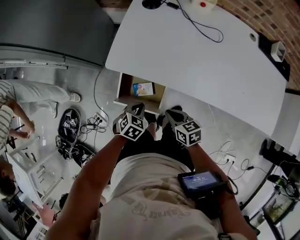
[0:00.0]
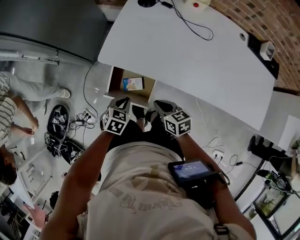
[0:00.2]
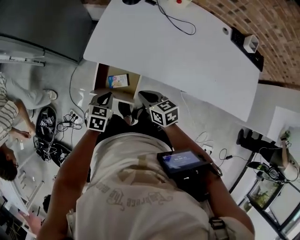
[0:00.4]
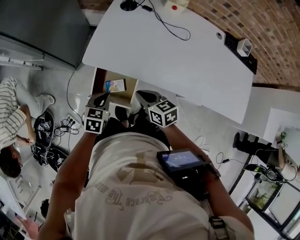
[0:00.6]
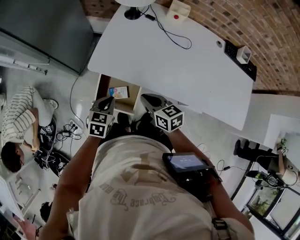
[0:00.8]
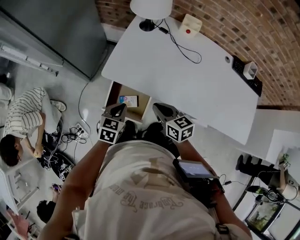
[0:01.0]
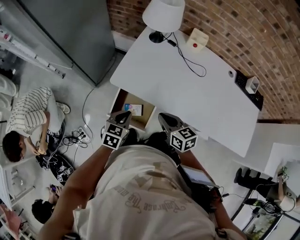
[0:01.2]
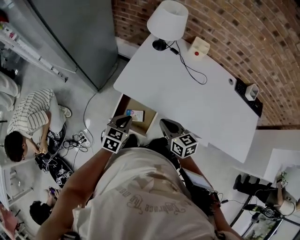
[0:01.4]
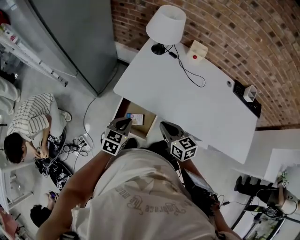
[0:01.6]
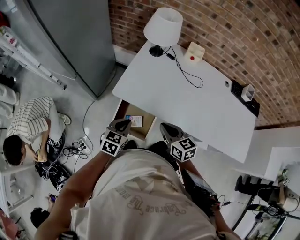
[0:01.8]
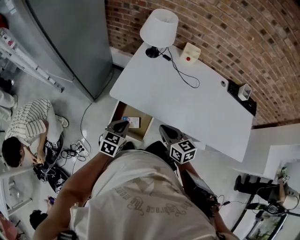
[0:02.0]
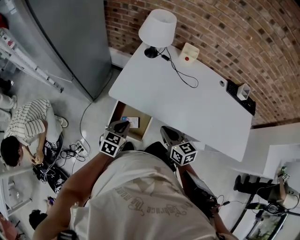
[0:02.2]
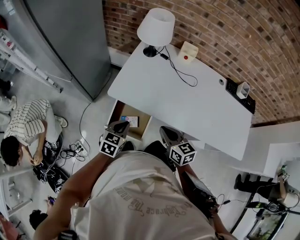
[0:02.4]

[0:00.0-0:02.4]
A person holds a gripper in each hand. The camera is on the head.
0:00.0 to 0:01.2: The right gripper is displaced upward and forward by roughly 15 cm, while the left gripper shifts approximately 15 cm upward, and changes its angle by some 30 degrees.
0:01.2 to 0:02.4: The grippers make only small movements.

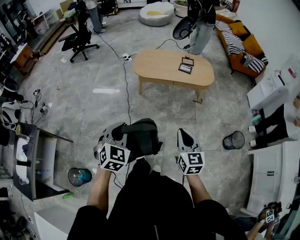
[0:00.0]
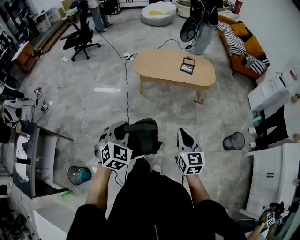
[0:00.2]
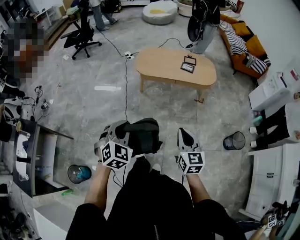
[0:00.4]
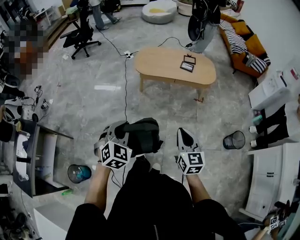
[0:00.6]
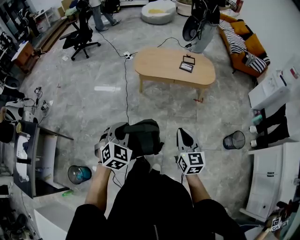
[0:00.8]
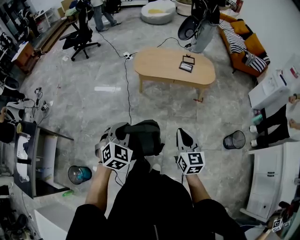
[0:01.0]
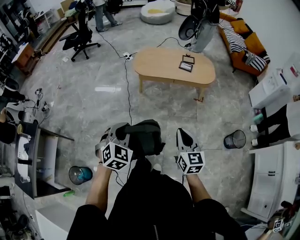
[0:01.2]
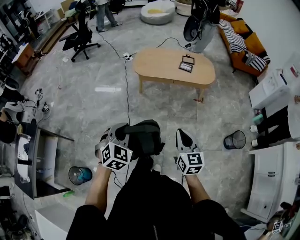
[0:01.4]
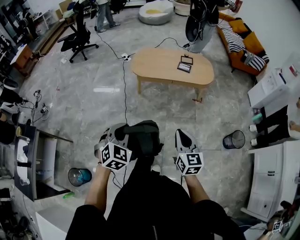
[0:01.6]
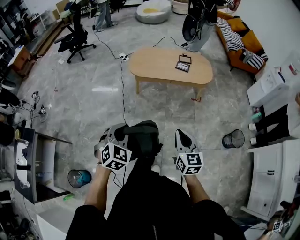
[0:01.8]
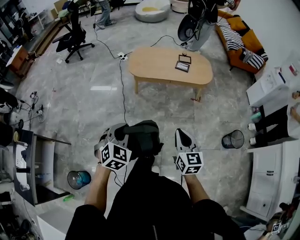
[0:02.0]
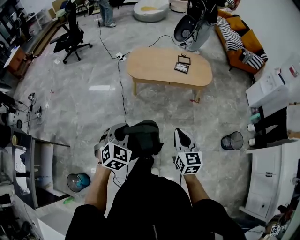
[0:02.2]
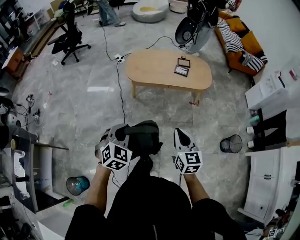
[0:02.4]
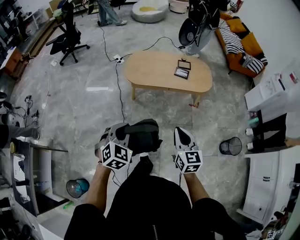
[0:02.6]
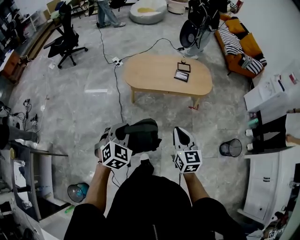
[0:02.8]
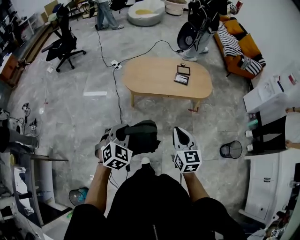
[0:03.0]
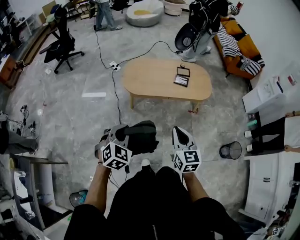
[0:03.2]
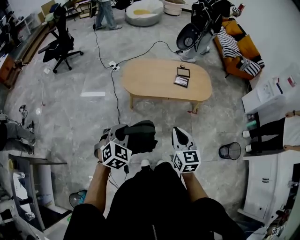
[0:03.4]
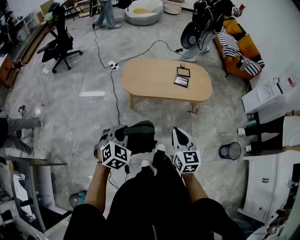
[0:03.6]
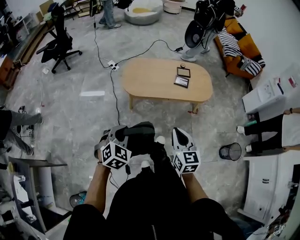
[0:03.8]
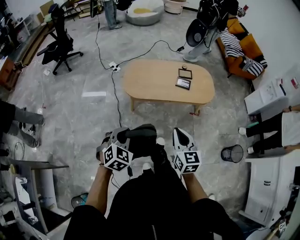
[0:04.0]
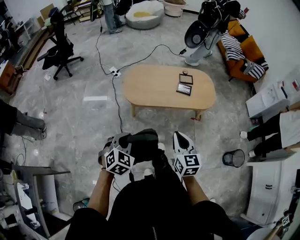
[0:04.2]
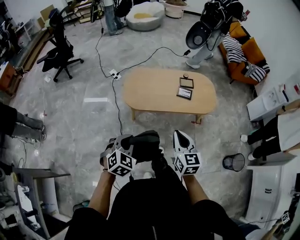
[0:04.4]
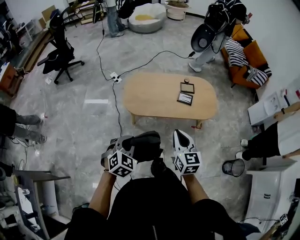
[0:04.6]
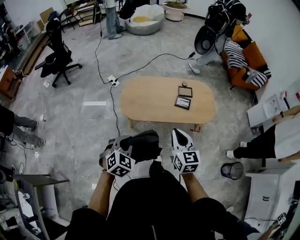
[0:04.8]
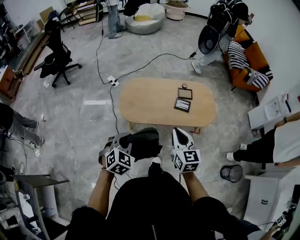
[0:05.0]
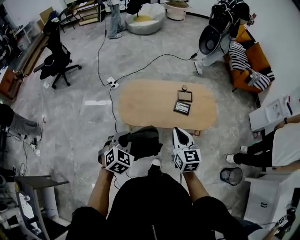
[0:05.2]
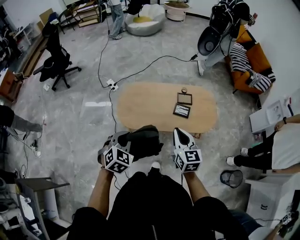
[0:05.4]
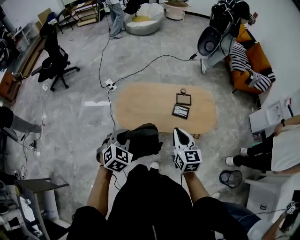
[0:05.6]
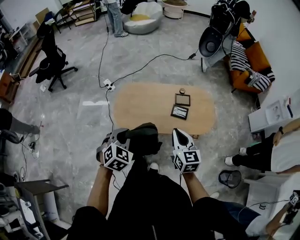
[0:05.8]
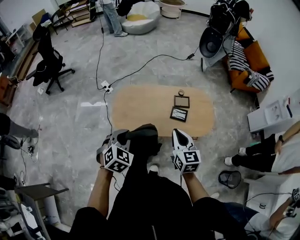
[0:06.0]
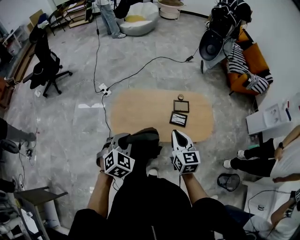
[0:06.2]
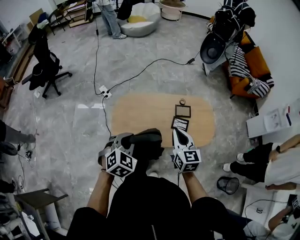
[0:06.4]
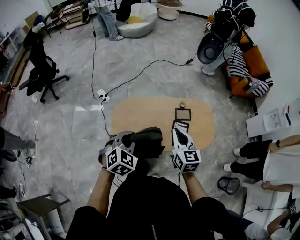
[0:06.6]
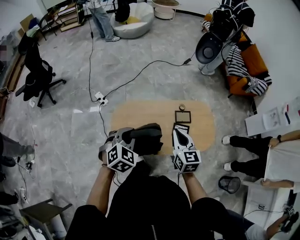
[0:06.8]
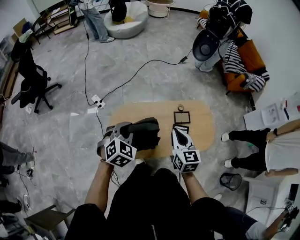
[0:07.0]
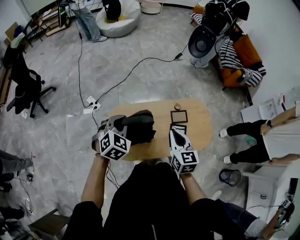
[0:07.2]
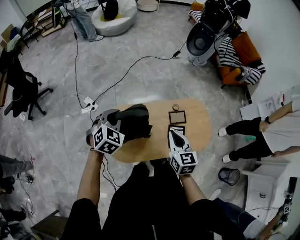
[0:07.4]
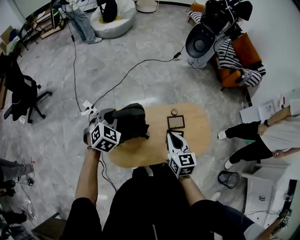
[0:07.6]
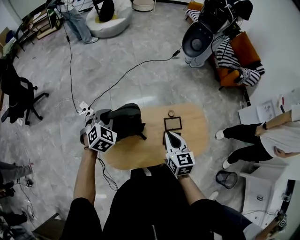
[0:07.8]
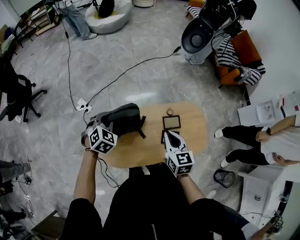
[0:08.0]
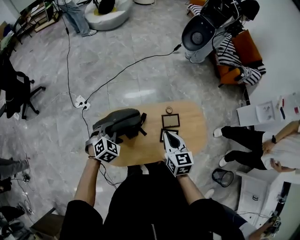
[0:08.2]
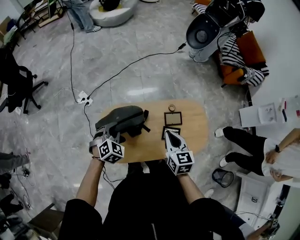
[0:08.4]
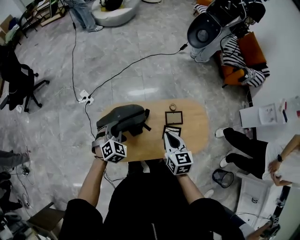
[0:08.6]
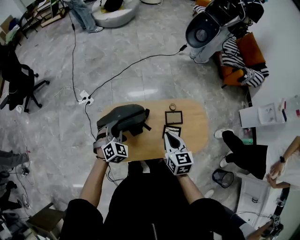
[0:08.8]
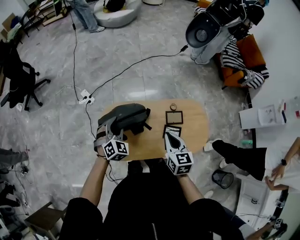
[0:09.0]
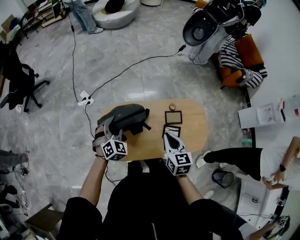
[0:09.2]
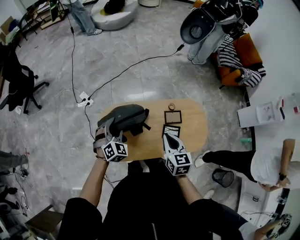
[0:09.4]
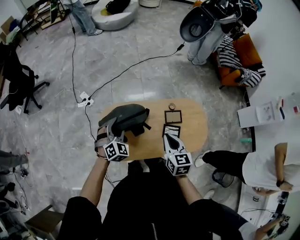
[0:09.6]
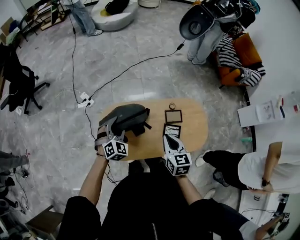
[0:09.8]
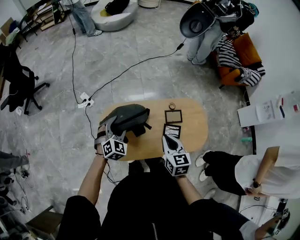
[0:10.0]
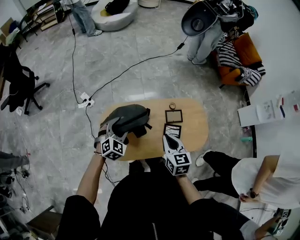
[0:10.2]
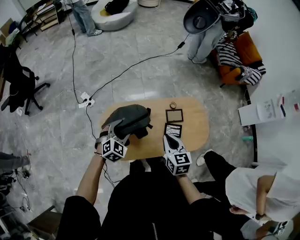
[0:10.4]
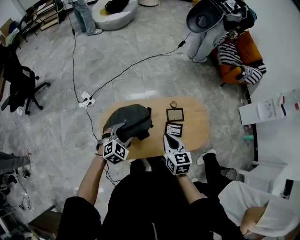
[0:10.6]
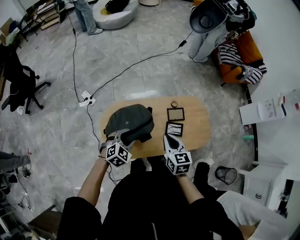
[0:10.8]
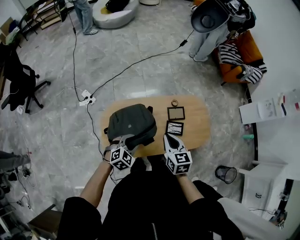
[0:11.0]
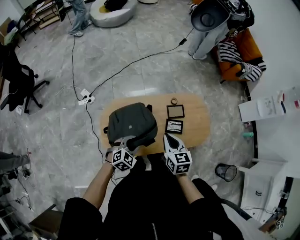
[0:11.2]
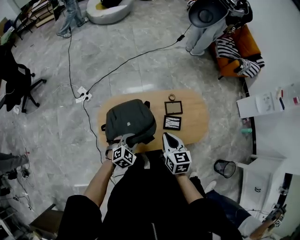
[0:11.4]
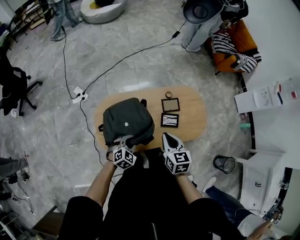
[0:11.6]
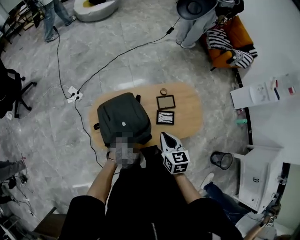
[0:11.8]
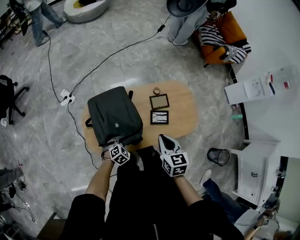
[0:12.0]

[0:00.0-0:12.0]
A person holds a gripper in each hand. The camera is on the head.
0:00.0 to 0:01.6: The grippers make only small movements.
0:01.6 to 0:03.0: The two grippers go roughly 20 cm forward.
0:03.0 to 0:04.4: The two grippers go about 15 cm forward.
0:04.4 to 0:06.0: Both grippers travel together forward, about 25 cm.
0:06.0 to 0:07.6: The right gripper moves forward, about 25 cm, while the left gripper heads forward, covering some 40 cm.
0:07.6 to 0:09.0: The left gripper goes some 10 cm downward and backward, and opens up.
0:09.0 to 0:10.4: The left gripper shifts by some 5 cm, changes its angle by approximately 20 degrees, and opens its fingers.
0:10.4 to 0:12.0: The right gripper shifts by roughly 5 cm, while the left gripper is displaced downward, backward and to the right by roughly 25 cm, swivels some 20 degrees, and closes.

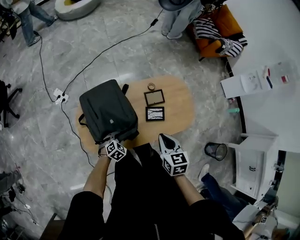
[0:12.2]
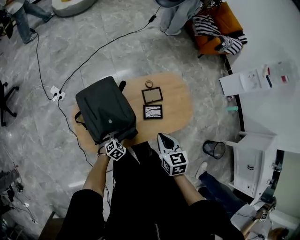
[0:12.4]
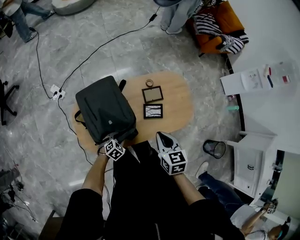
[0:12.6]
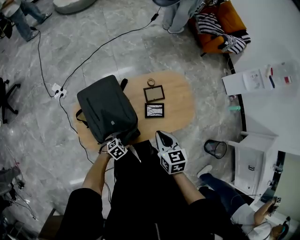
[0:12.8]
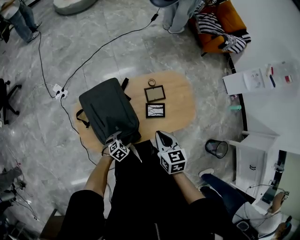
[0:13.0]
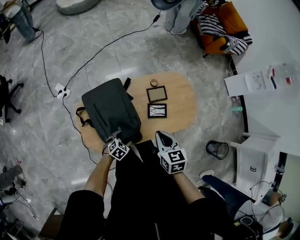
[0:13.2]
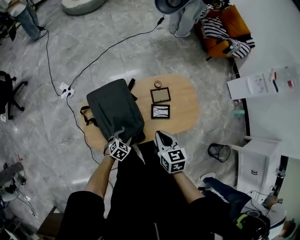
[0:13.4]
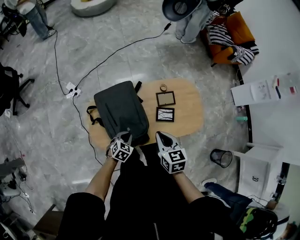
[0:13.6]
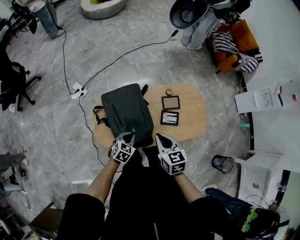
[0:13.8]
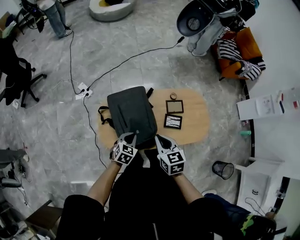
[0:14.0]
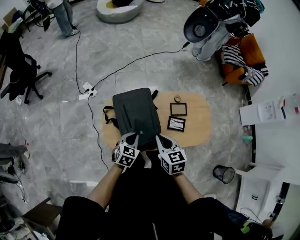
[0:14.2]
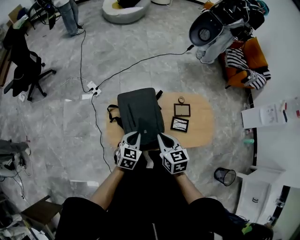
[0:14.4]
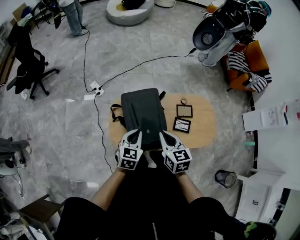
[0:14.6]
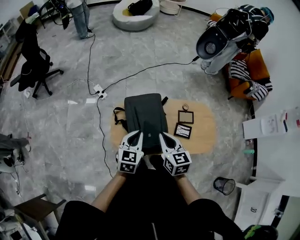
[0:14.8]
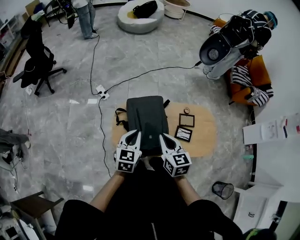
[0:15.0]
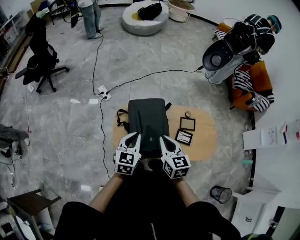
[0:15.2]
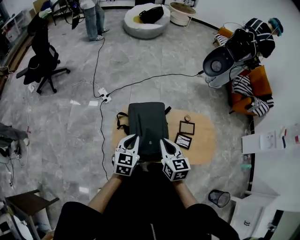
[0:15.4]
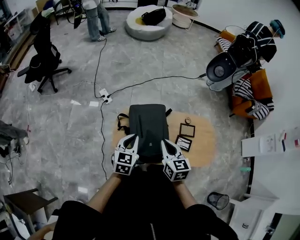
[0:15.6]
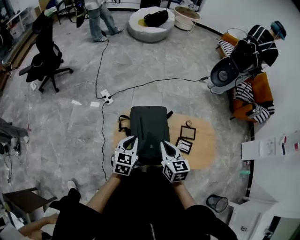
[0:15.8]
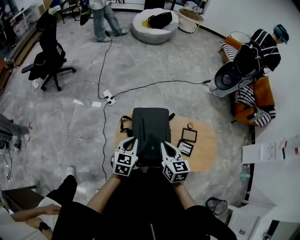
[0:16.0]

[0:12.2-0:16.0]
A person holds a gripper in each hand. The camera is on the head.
0:12.2 to 0:13.4: The left gripper opens its fingers.
0:13.4 to 0:14.8: The right gripper changes place by approximately 15 cm; the left gripper heads upward, covering some 25 cm, swivels about 50 degrees, and closes its fingers.
0:14.8 to 0:16.0: The left gripper travels to the left by approximately 5 cm.

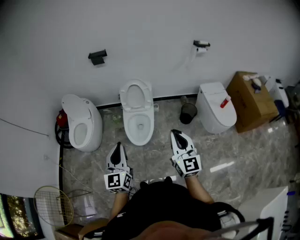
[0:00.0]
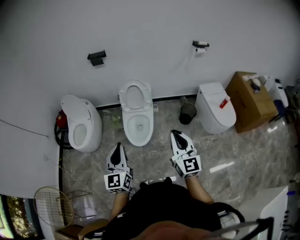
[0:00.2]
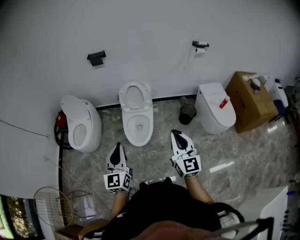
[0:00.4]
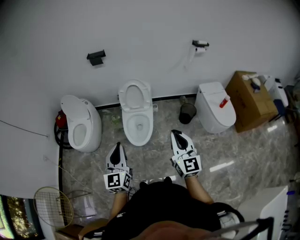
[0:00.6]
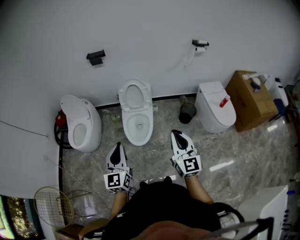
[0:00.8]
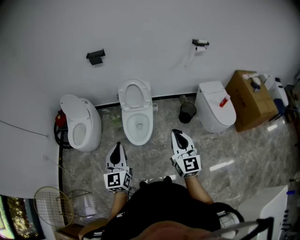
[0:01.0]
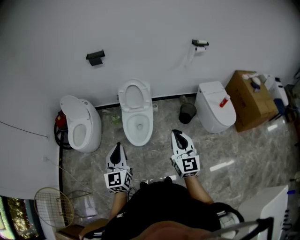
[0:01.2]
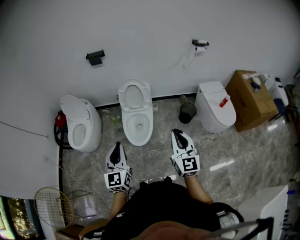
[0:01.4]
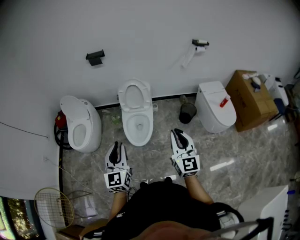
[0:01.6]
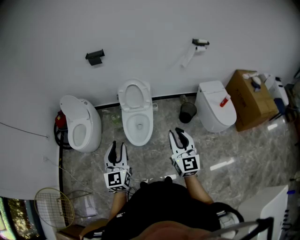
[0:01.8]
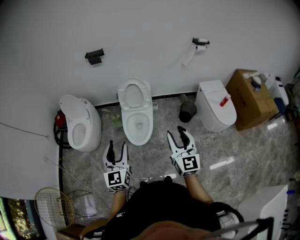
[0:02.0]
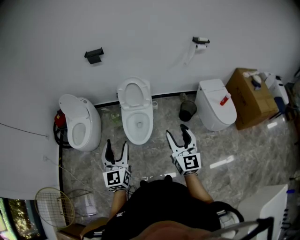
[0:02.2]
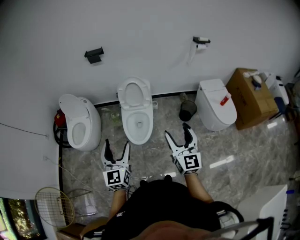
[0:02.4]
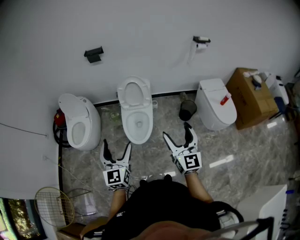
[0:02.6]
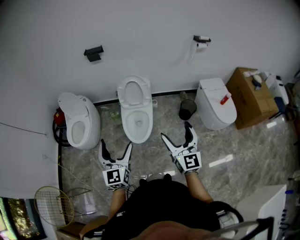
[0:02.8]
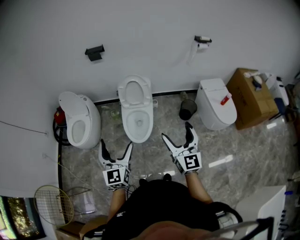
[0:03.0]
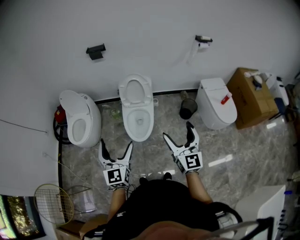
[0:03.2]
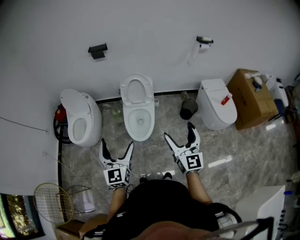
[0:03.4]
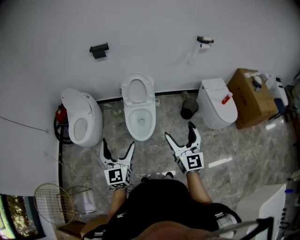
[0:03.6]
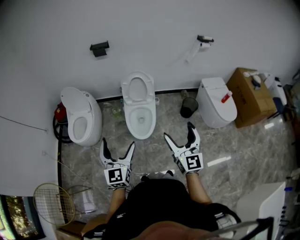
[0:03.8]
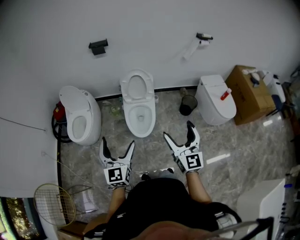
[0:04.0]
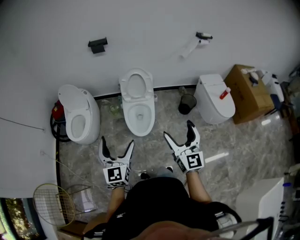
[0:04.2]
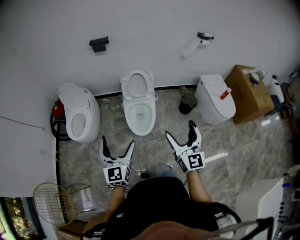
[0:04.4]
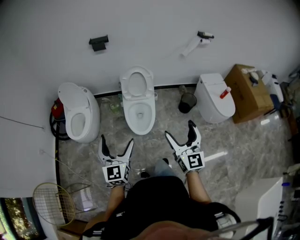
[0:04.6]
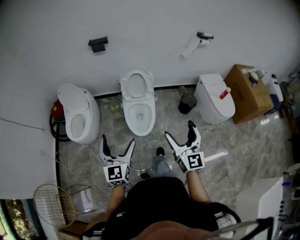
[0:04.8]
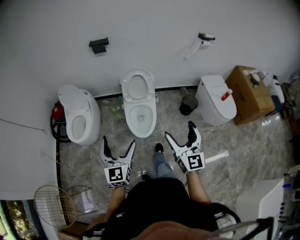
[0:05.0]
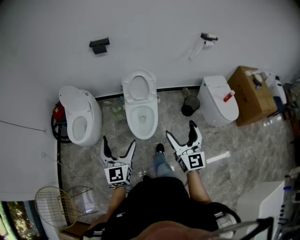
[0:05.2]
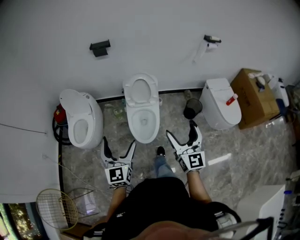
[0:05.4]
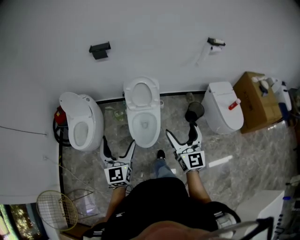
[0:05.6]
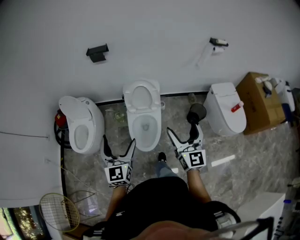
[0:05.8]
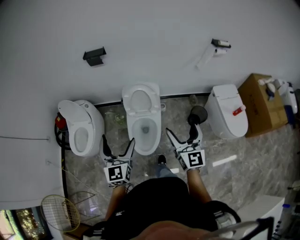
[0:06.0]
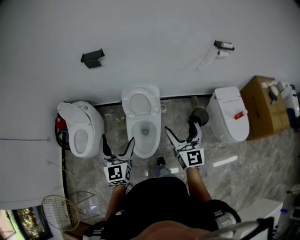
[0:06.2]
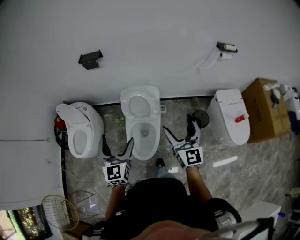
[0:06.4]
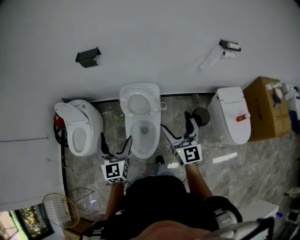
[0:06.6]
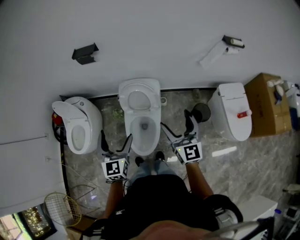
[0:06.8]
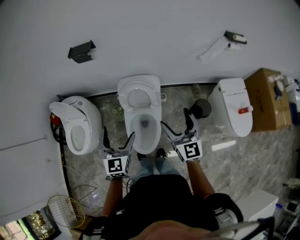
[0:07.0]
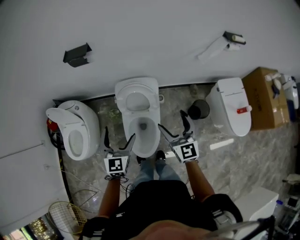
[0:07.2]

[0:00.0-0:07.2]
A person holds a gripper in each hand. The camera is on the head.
0:00.0 to 0:01.4: The grippers stay close to where they were, moving slightly.
0:01.4 to 0:02.8: The left gripper opens its fingers. The right gripper opens its fingers.
0:02.8 to 0:04.4: The two grippers go approximately 5 cm to the left.
0:04.4 to 0:05.8: Both grippers travel together forward, about 20 cm.
0:05.8 to 0:07.2: Both grippers travel together forward, roughly 25 cm.
